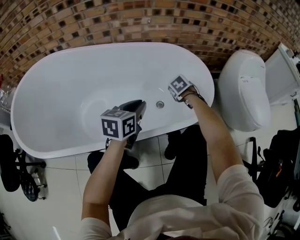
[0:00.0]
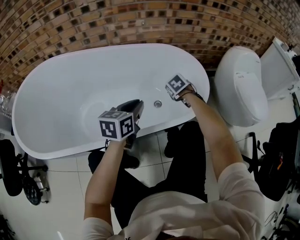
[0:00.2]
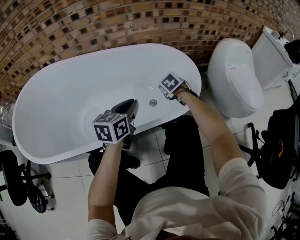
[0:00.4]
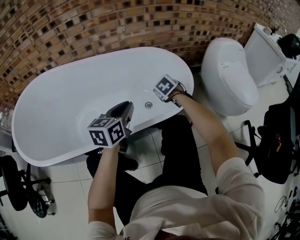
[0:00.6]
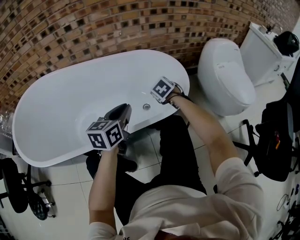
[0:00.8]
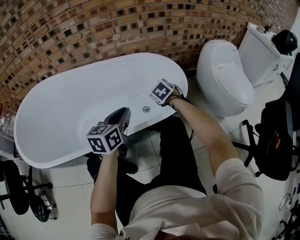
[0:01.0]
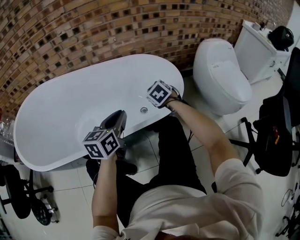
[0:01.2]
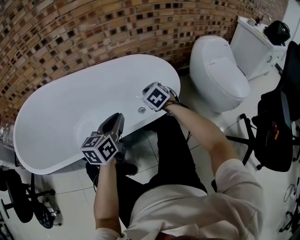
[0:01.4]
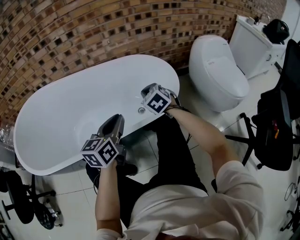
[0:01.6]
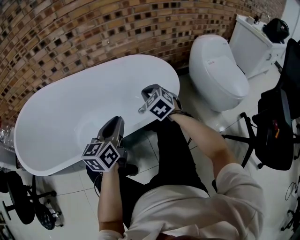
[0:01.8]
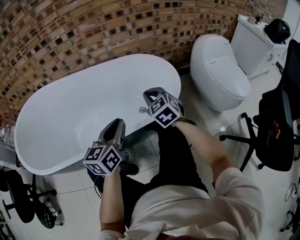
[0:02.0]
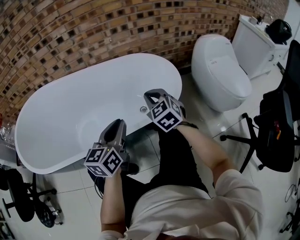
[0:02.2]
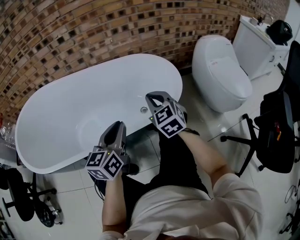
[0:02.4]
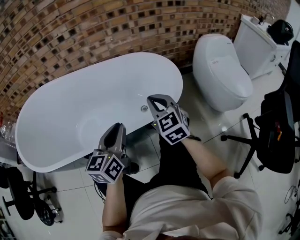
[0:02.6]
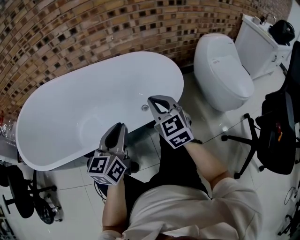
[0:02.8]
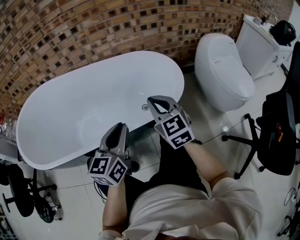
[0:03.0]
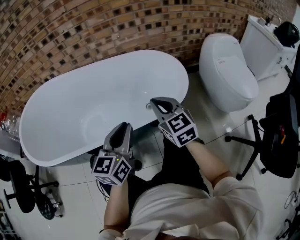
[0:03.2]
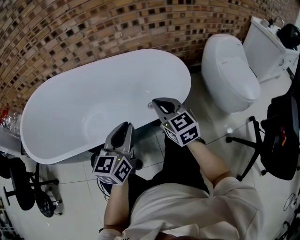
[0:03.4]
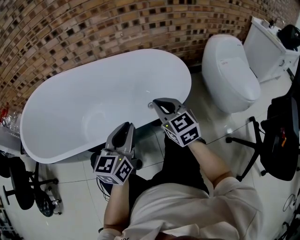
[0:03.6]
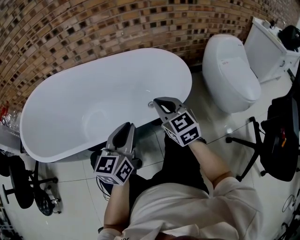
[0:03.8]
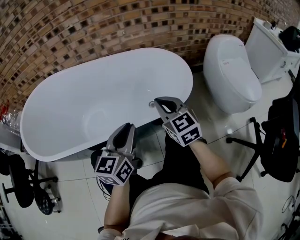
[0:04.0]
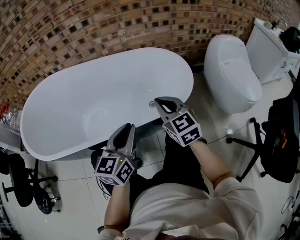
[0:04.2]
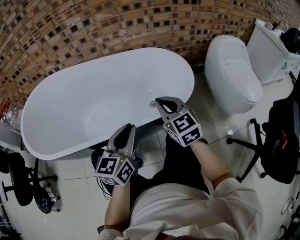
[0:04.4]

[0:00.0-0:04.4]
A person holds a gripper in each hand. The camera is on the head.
0:00.0 to 0:01.4: The left gripper travels backward and upward by approximately 15 cm, while the right gripper heads upward and backward, covering roughly 20 cm, and changes its angle by approximately 30 degrees.
0:01.4 to 0:03.0: The left gripper moves backward, some 5 cm; the right gripper is displaced backward and upward by some 15 cm, and angles its fingers upward, by about 30 degrees.
0:03.0 to 0:04.4: The grippers make only small movements.

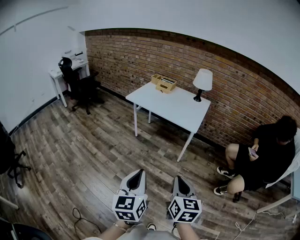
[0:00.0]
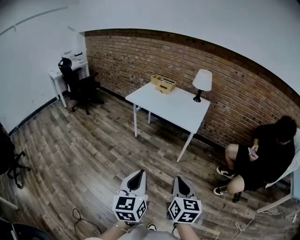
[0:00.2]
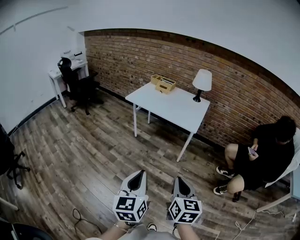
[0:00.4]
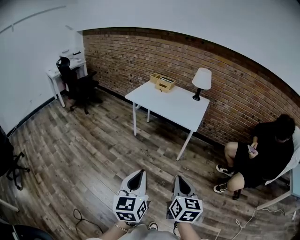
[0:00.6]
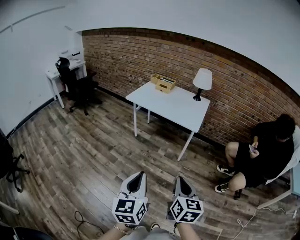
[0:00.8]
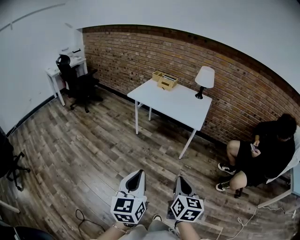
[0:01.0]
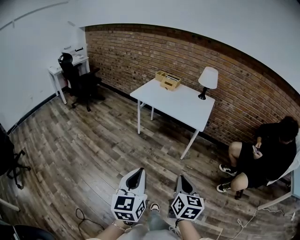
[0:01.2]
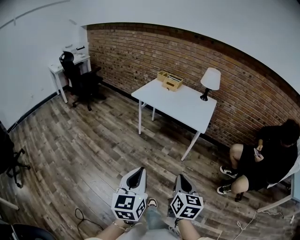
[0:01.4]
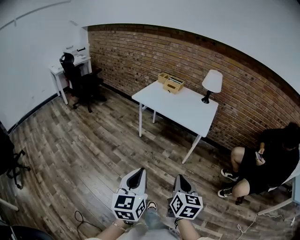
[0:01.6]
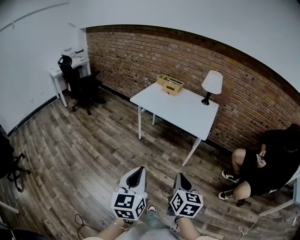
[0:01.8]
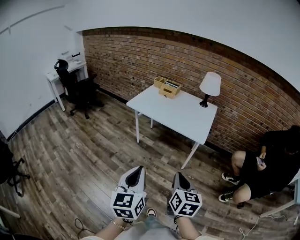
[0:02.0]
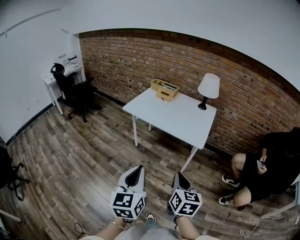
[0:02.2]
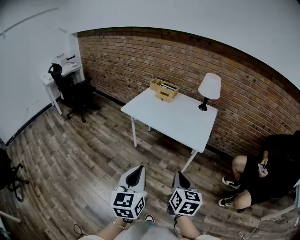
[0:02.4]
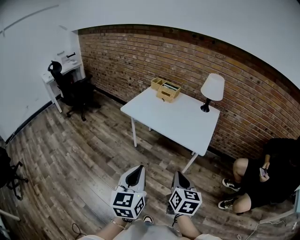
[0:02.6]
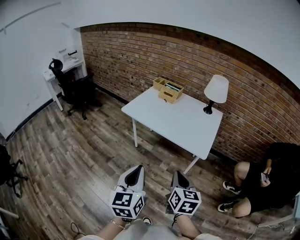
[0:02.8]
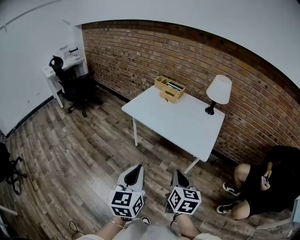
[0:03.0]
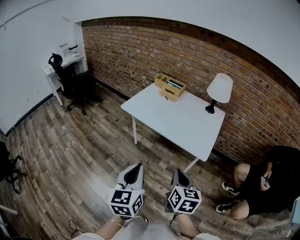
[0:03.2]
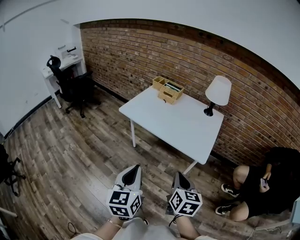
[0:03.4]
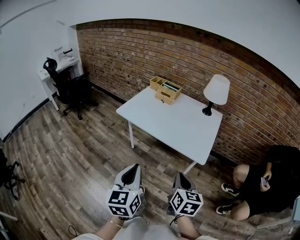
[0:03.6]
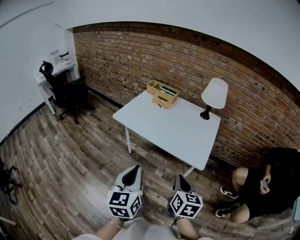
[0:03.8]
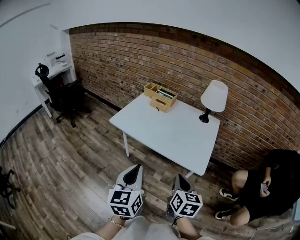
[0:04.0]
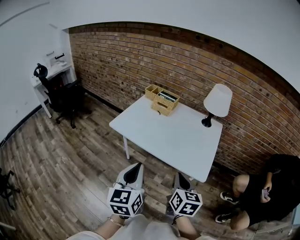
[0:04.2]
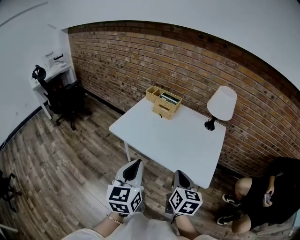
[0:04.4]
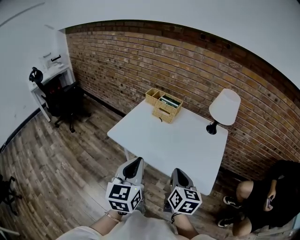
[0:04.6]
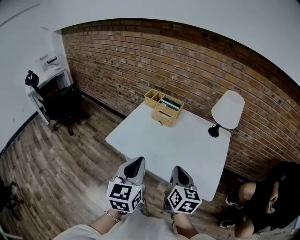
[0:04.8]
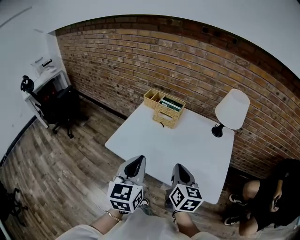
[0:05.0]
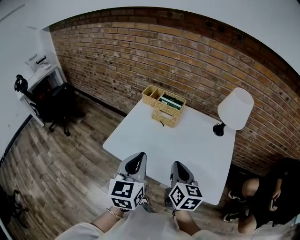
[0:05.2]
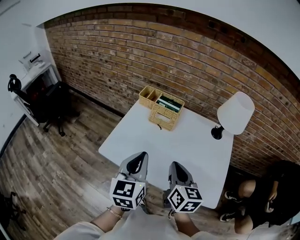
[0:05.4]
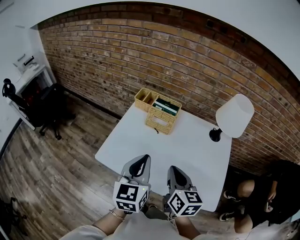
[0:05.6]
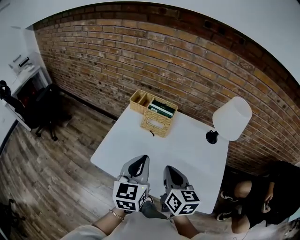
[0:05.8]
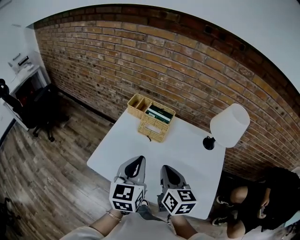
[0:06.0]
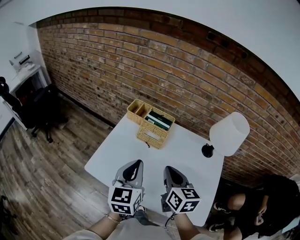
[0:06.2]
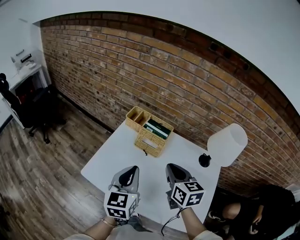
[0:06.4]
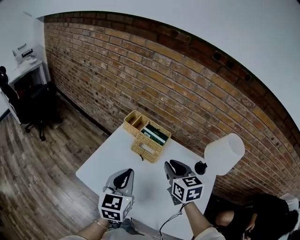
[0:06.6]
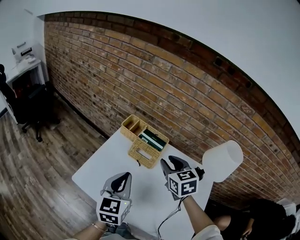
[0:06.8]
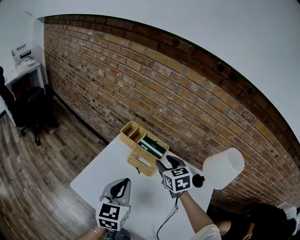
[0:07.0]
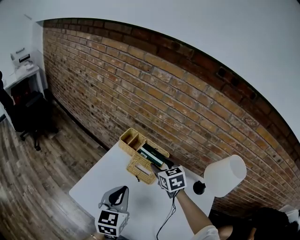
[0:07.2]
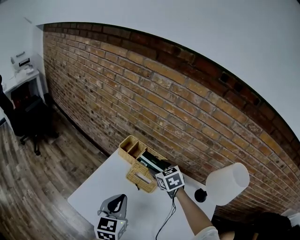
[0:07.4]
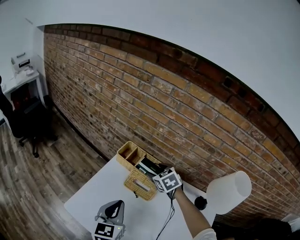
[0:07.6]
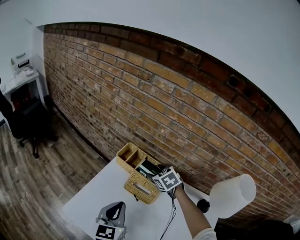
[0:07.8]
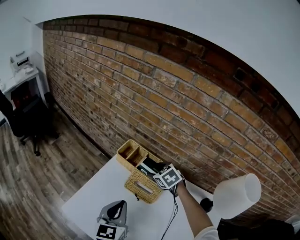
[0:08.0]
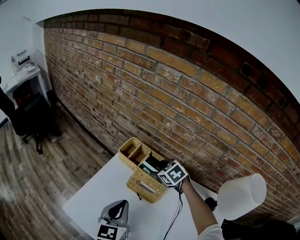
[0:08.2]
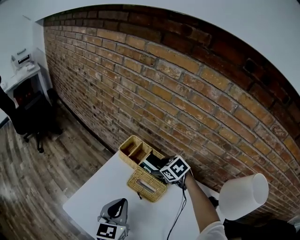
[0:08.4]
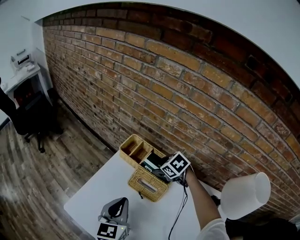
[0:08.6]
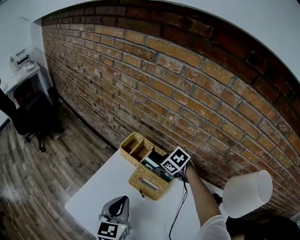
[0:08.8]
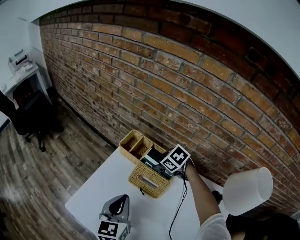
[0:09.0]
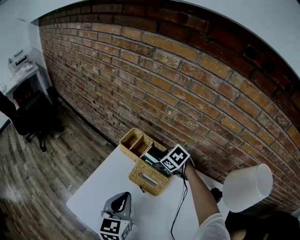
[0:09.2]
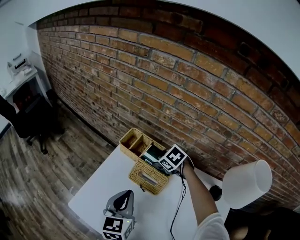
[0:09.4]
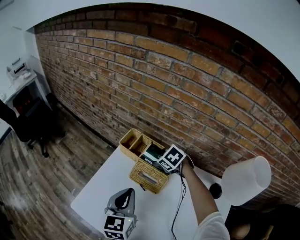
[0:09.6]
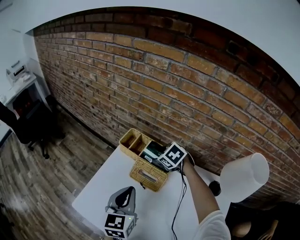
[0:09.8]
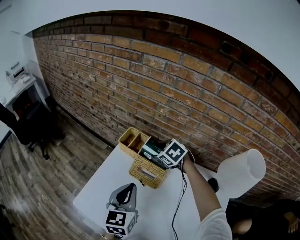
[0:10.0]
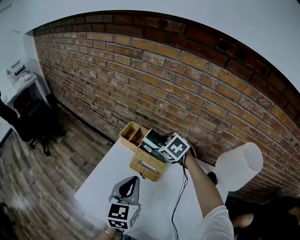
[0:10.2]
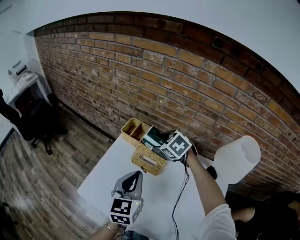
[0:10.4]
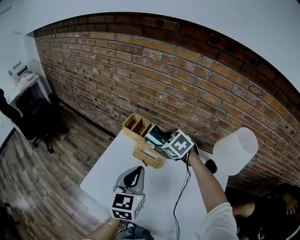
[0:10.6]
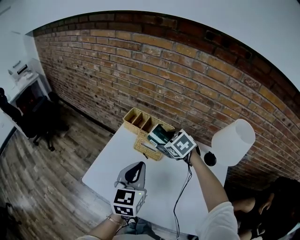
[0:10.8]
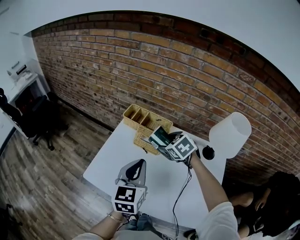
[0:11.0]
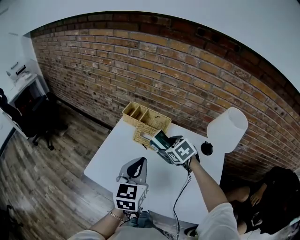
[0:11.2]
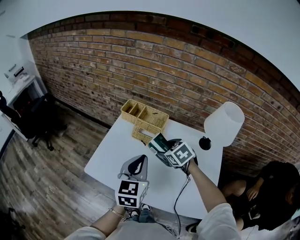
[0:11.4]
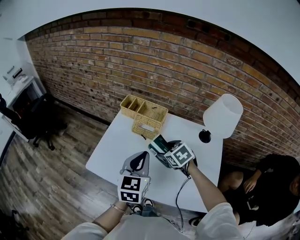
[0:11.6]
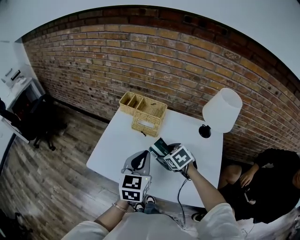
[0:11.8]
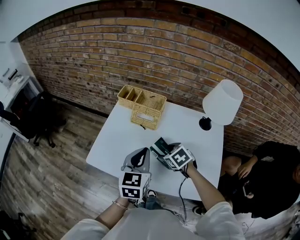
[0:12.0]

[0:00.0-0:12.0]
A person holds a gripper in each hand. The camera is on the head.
0:00.0 to 0:01.6: The left gripper goes some 10 cm to the left; the right gripper is displaced to the left and forward by about 10 cm.
0:01.6 to 0:03.0: Both grippers travel together forward, about 25 cm.
0:03.0 to 0:04.4: Both grippers move forward, roughly 20 cm.
0:04.4 to 0:06.0: The grippers both shift forward by approximately 30 cm.
0:06.0 to 0:07.6: The left gripper is displaced forward and downward by some 15 cm. Meanwhile the right gripper is displaced forward by some 35 cm, changes its angle by roughly 50 degrees, and opens up.
0:07.6 to 0:09.0: The left gripper shifts by about 5 cm, while the right gripper goes some 10 cm downward, and turns by roughly 30 degrees.
0:09.0 to 0:10.4: The right gripper travels upward and backward by some 15 cm. The left gripper heads upward, covering roughly 10 cm.
0:10.4 to 0:12.0: The right gripper goes some 30 cm backward, and swivels roughly 20 degrees. Meanwhile the left gripper goes roughly 15 cm backward.

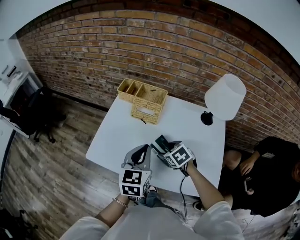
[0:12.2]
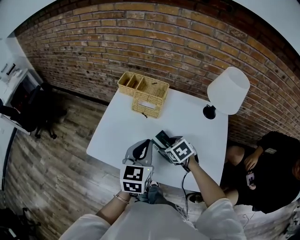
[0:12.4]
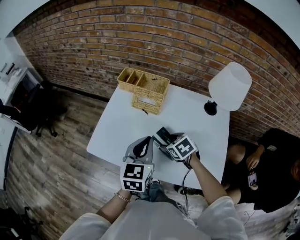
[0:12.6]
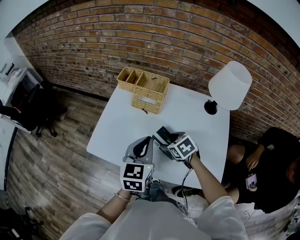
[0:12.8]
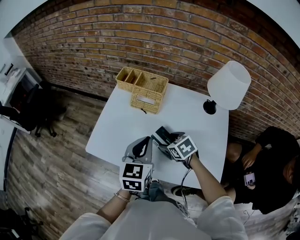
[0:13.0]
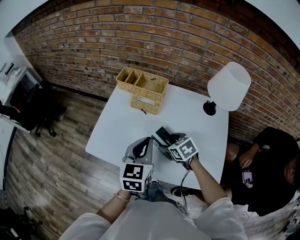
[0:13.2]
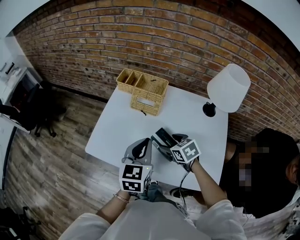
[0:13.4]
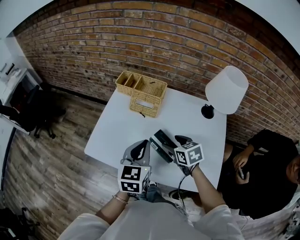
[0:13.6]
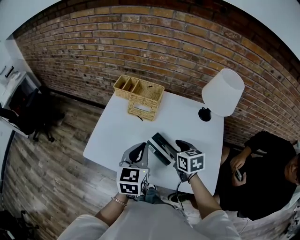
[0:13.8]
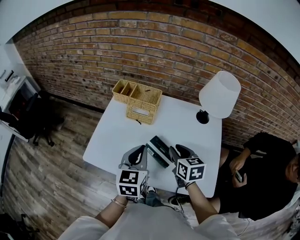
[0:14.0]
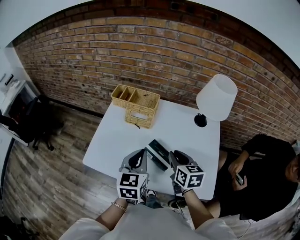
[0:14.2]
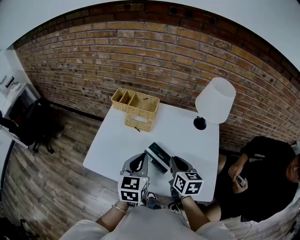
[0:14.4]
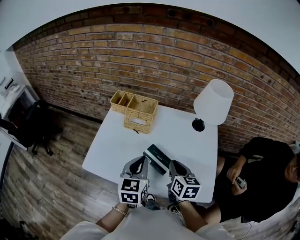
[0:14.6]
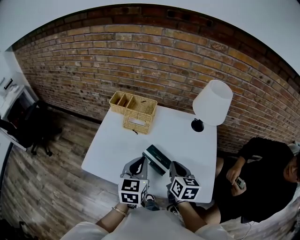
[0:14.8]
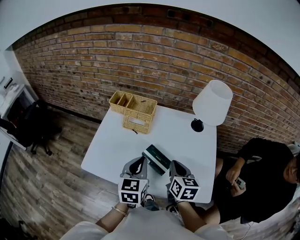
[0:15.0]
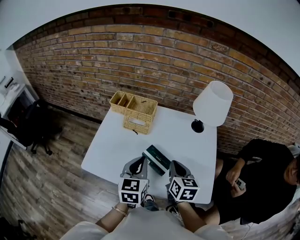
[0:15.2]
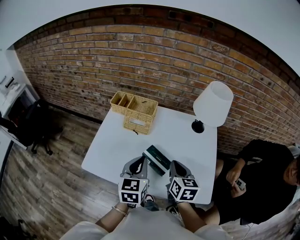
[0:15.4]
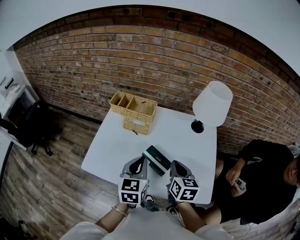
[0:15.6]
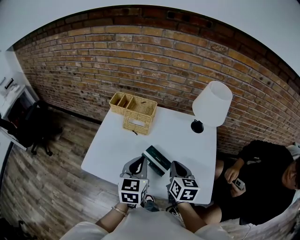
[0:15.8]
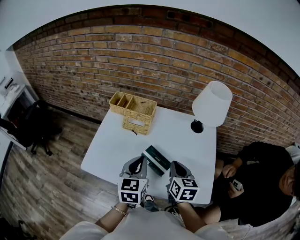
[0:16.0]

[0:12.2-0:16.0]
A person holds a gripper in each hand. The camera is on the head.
0:12.2 to 0:13.4: There are only small adjustments of the grippers.
0:13.4 to 0:14.8: The right gripper travels upward, to the right and backward by some 10 cm, turns by approximately 50 degrees, and closes its fingers.
0:14.8 to 0:16.0: Neither gripper changes place.

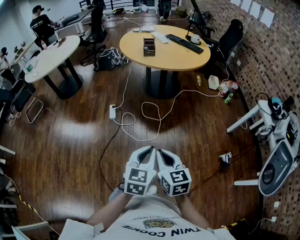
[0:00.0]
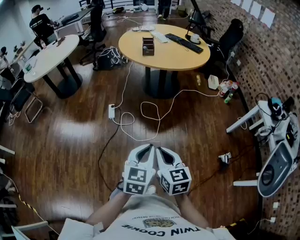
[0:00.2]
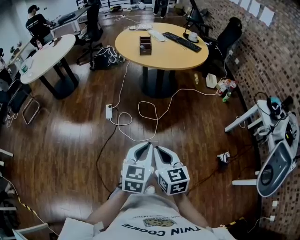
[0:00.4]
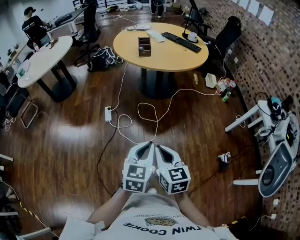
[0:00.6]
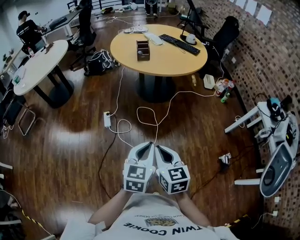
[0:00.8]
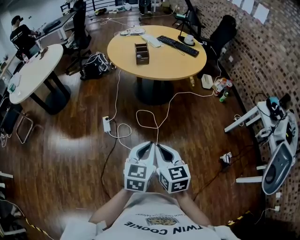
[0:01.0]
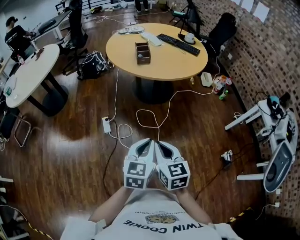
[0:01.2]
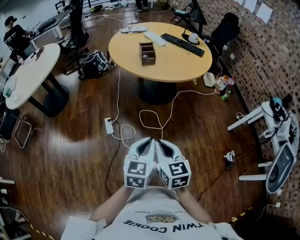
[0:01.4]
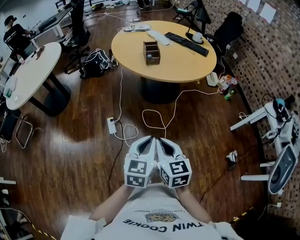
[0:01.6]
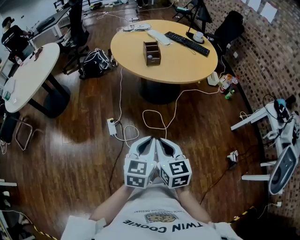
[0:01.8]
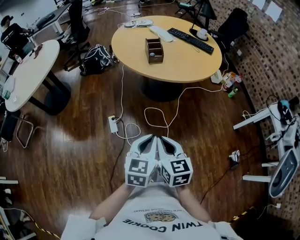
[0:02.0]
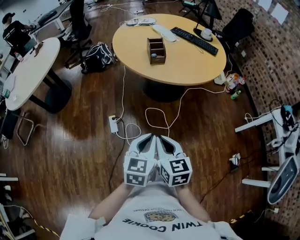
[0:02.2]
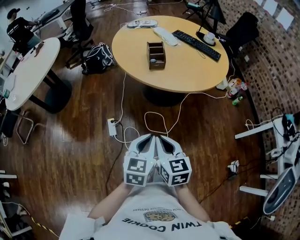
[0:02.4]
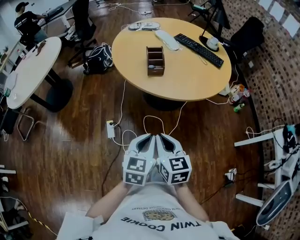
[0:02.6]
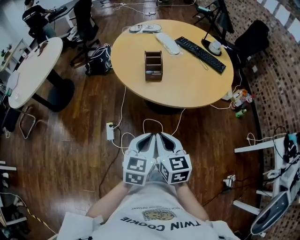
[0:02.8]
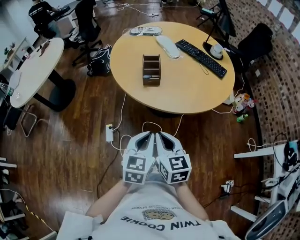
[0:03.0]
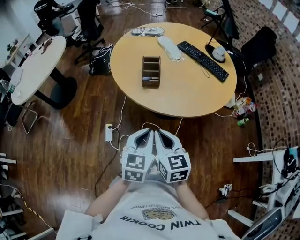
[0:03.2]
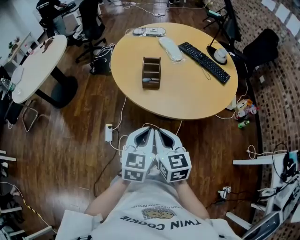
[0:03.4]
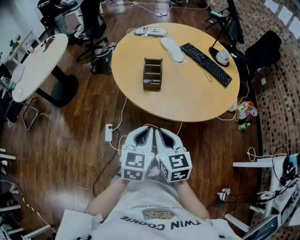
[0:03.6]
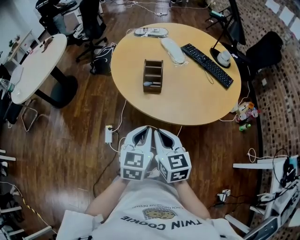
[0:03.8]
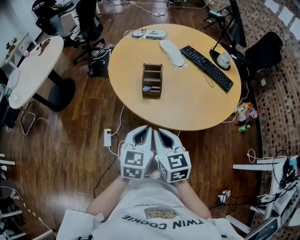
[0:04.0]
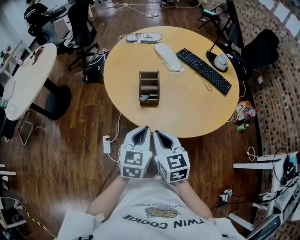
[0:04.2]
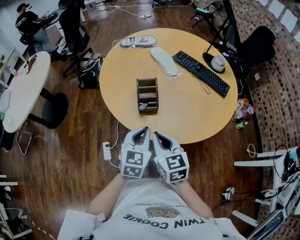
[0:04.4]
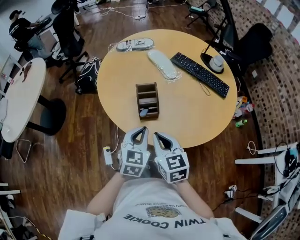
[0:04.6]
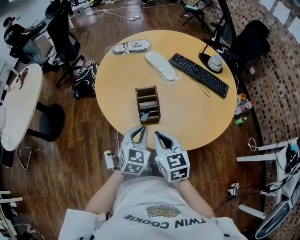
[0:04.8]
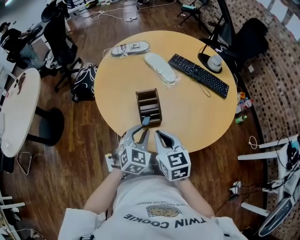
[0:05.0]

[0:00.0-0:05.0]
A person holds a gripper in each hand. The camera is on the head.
0:00.0 to 0:01.6: Both grippers move forward and to the left, approximately 30 cm.
0:01.6 to 0:03.4: The two grippers go some 30 cm forward.
0:03.4 to 0:05.0: The two grippers go some 25 cm forward. The left gripper changes its angle by approximately 30 degrees.
